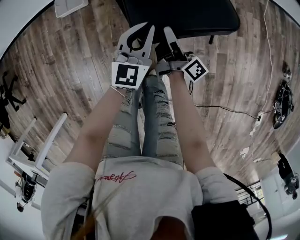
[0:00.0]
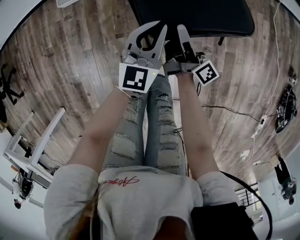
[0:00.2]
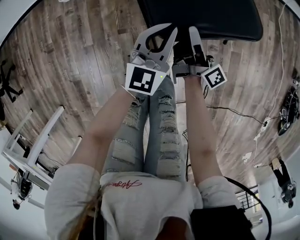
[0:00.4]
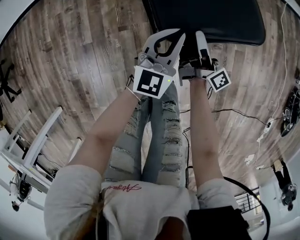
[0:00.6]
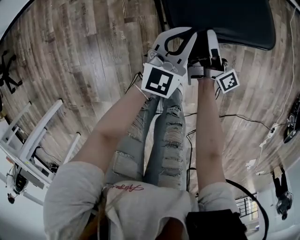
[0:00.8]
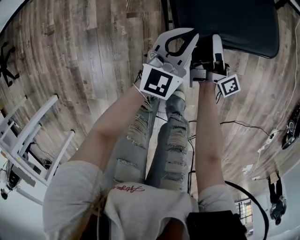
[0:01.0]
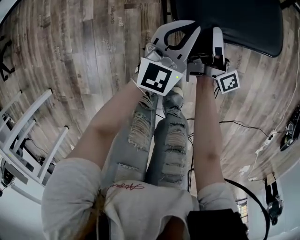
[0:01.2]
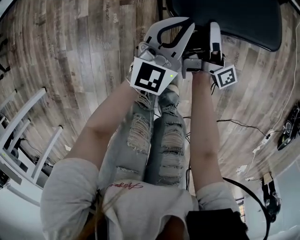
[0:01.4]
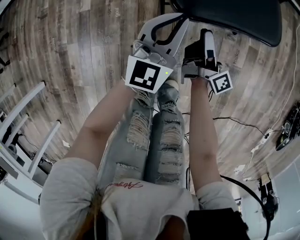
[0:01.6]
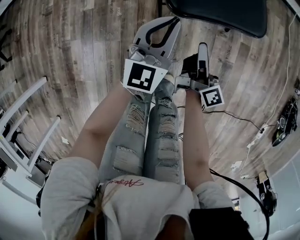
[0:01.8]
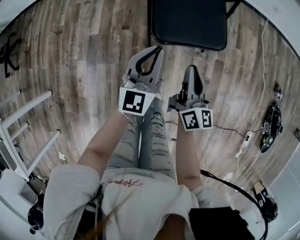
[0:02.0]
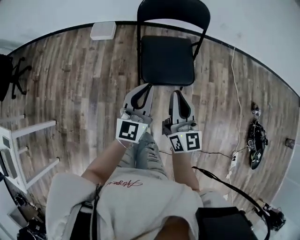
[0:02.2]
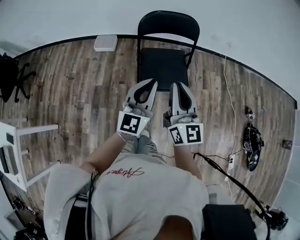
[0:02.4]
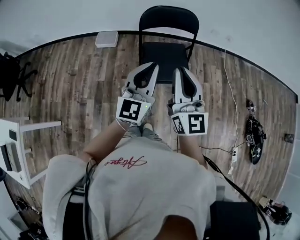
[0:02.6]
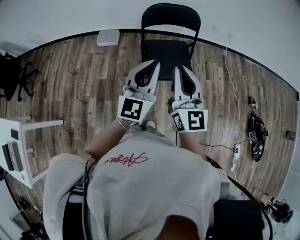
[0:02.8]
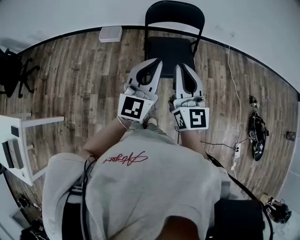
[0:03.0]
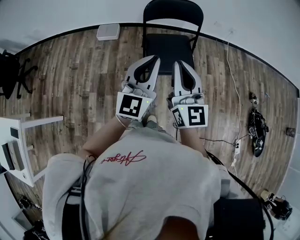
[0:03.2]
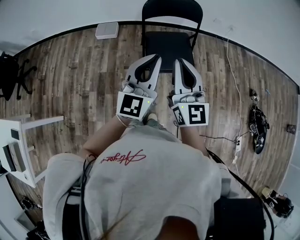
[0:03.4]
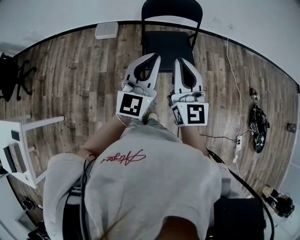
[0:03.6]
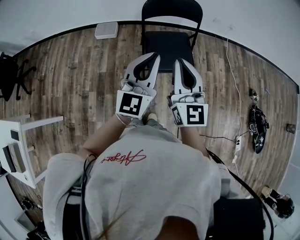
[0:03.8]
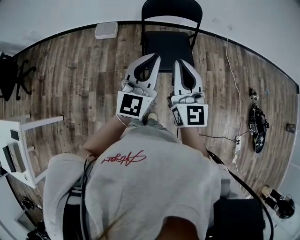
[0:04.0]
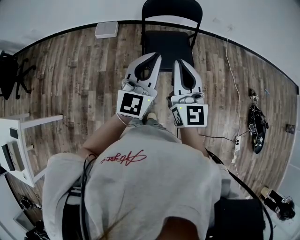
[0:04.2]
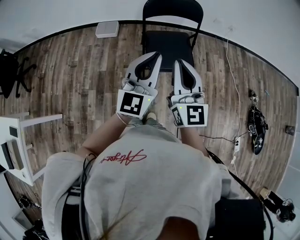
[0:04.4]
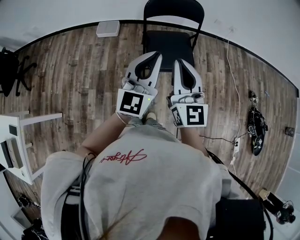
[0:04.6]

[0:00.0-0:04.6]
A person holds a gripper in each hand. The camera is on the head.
0:00.0 to 0:01.6: The two grippers go about 25 cm backward and downward.
0:01.6 to 0:03.0: The two grippers go some 60 cm upward. The right gripper rolls counterclockwise, seen from behind, by some 80 degrees, and closes its fingers.
0:03.0 to 0:04.6: The grippers make only small movements.

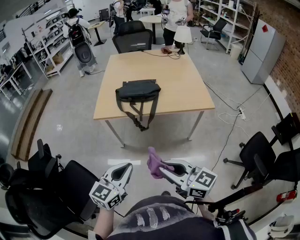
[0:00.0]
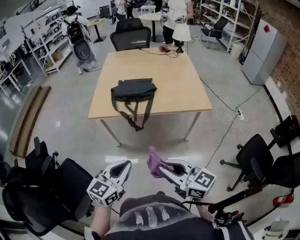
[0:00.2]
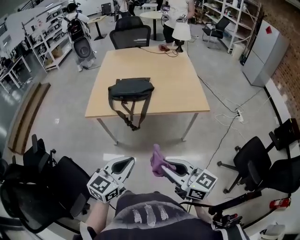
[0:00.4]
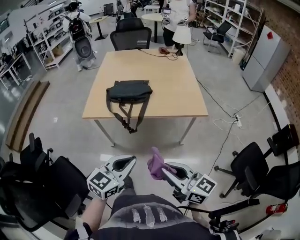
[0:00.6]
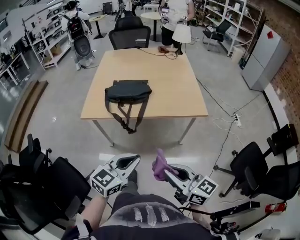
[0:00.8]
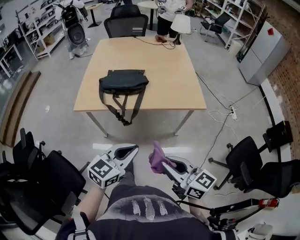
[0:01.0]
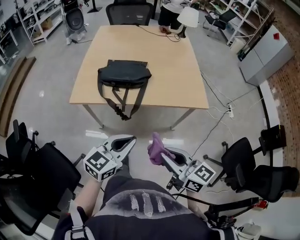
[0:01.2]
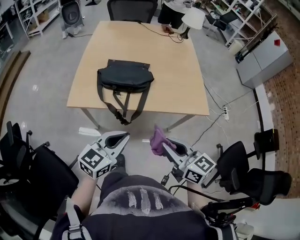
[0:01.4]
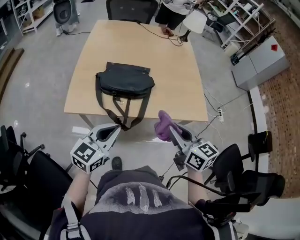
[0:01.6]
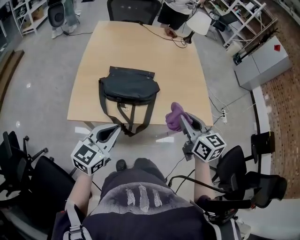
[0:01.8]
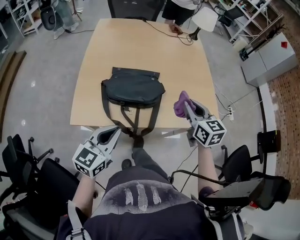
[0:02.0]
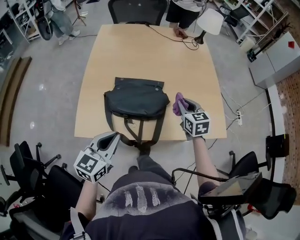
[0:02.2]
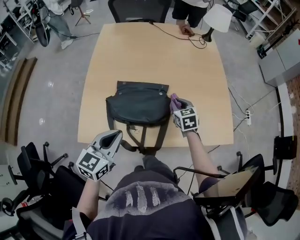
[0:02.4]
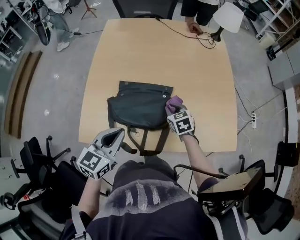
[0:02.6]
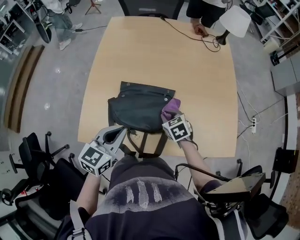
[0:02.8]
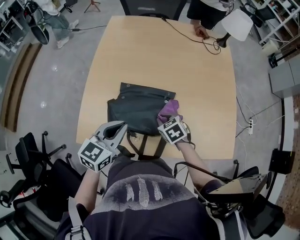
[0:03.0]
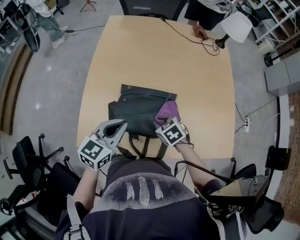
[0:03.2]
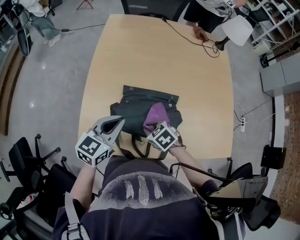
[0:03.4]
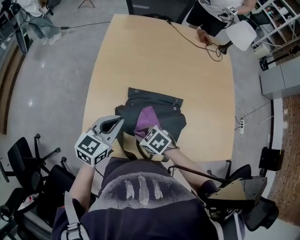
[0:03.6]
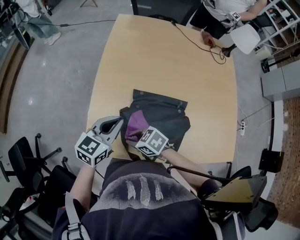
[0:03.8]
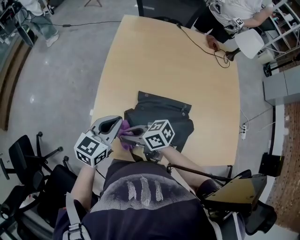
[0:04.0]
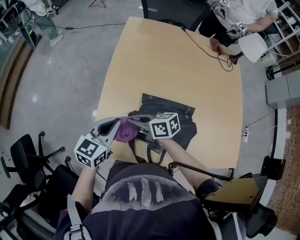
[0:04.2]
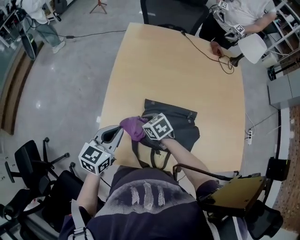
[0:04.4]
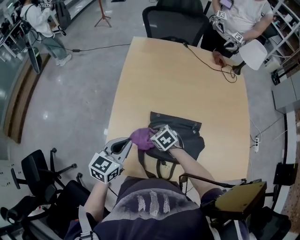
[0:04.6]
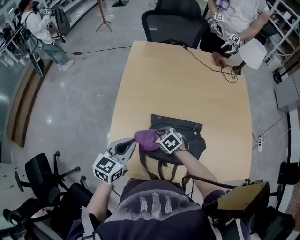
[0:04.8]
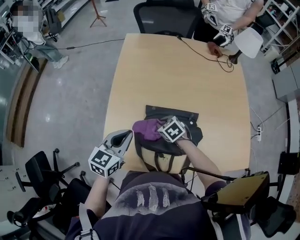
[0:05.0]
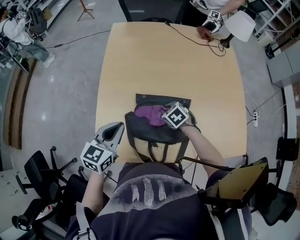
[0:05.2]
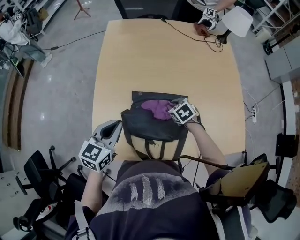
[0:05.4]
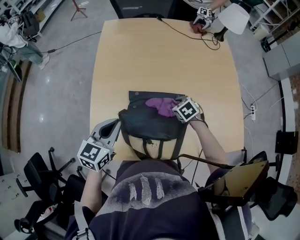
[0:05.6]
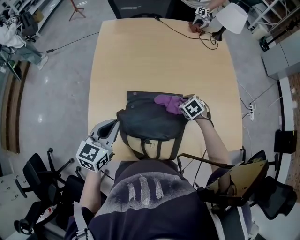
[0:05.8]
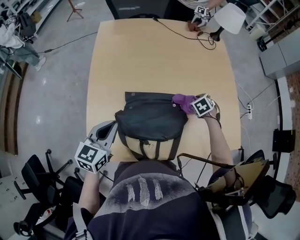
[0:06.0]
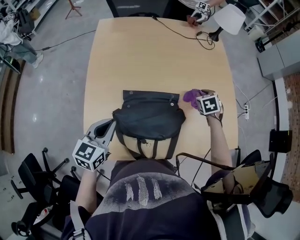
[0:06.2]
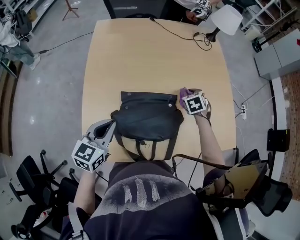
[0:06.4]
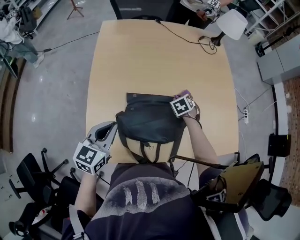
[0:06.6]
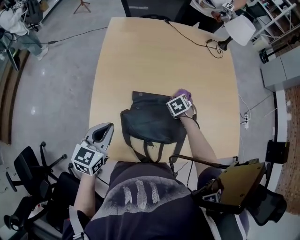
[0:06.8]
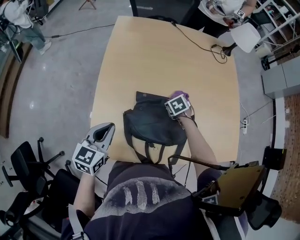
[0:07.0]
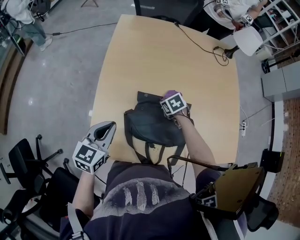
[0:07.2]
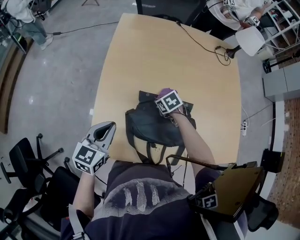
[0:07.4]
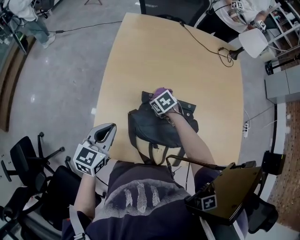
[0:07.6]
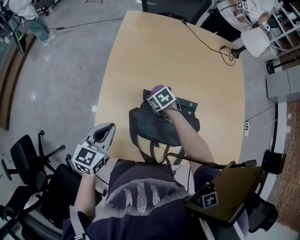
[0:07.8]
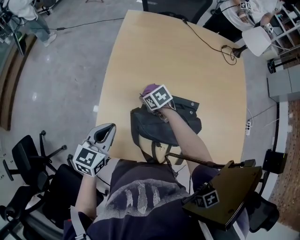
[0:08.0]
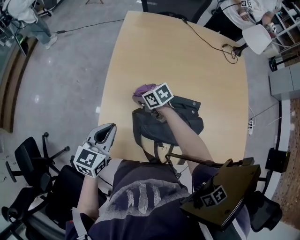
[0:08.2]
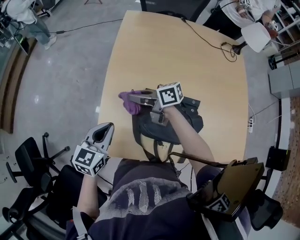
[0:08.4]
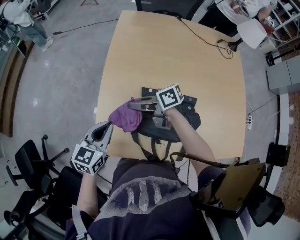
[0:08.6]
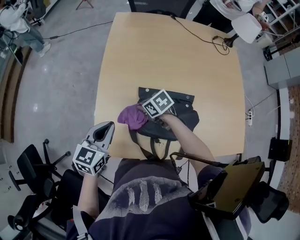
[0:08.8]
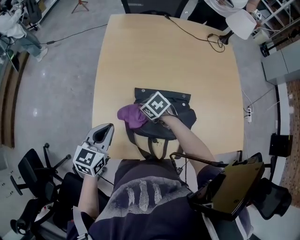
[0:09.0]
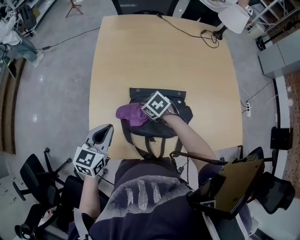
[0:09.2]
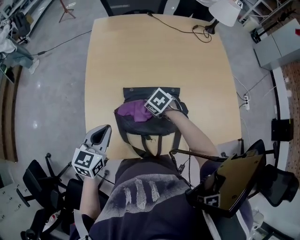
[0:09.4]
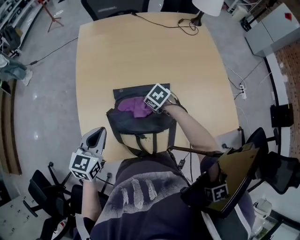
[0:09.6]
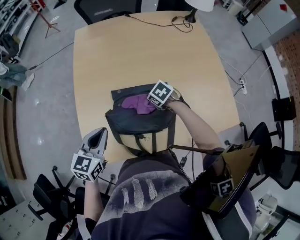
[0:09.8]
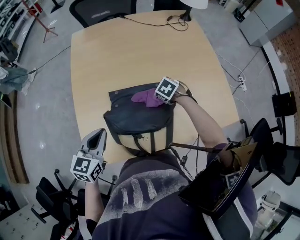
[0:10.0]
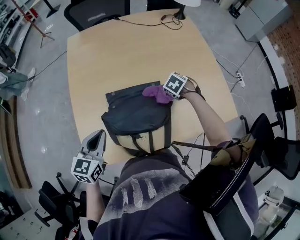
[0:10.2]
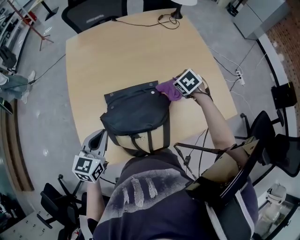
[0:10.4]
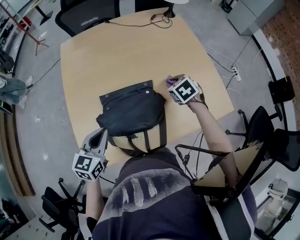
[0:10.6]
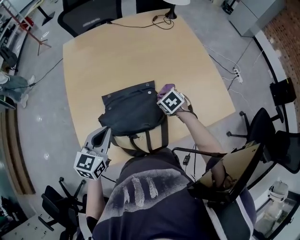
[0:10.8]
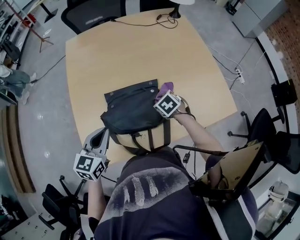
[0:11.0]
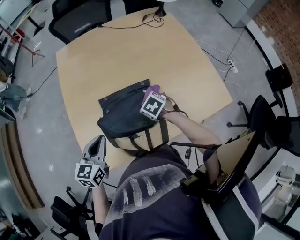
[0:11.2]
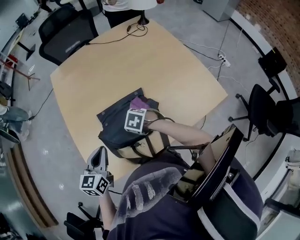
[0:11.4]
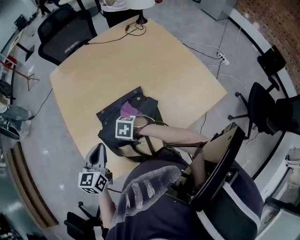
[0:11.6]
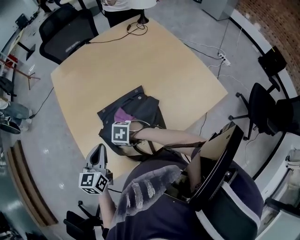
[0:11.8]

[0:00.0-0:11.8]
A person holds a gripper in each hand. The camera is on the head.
0:00.0 to 0:01.4: Both grippers move forward, about 25 cm.
0:01.4 to 0:03.0: The right gripper travels forward and downward by roughly 50 cm, and angles its fingers downward, by roughly 40 degrees, while the left gripper is displaced forward by roughly 35 cm.
0:03.0 to 0:04.4: The right gripper reaches approximately 10 cm upward, then returns. Meanwhile the left gripper moves approximately 20 cm.
0:04.4 to 0:06.0: The left gripper changes place by approximately 5 cm; the right gripper changes place by roughly 40 cm, and turns by some 40 degrees.
0:06.0 to 0:07.4: The left gripper changes place by approximately 10 cm, while the right gripper ends up approximately 30 cm from where it was, and rotates about 30 degrees.
0:07.4 to 0:08.8: The right gripper travels to the left by roughly 10 cm, and rotates roughly 20 degrees.
0:08.8 to 0:10.4: The right gripper moves about 40 cm, and changes its angle by about 40 degrees. Meanwhile the left gripper shifts by approximately 10 cm.
0:10.4 to 0:11.8: The right gripper changes place by some 35 cm, and changes its angle by about 30 degrees.

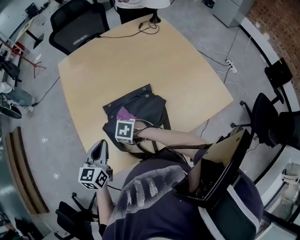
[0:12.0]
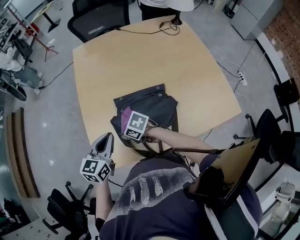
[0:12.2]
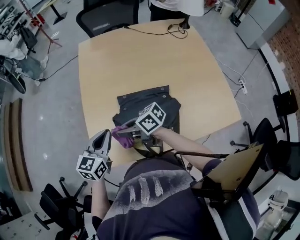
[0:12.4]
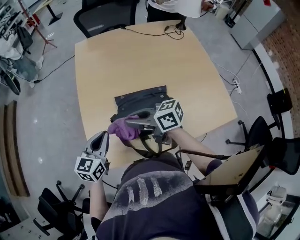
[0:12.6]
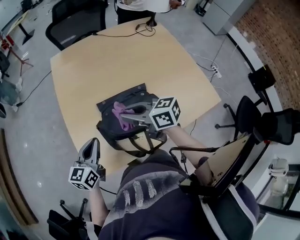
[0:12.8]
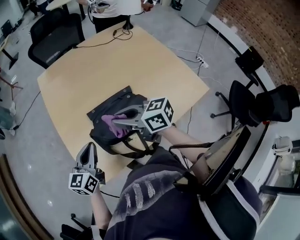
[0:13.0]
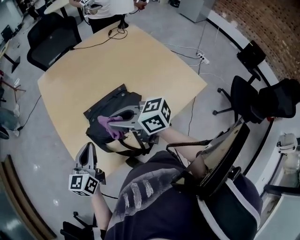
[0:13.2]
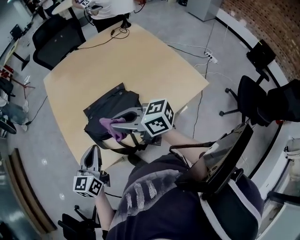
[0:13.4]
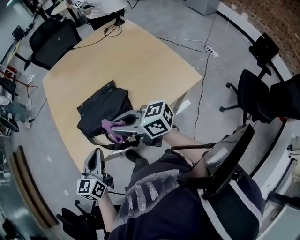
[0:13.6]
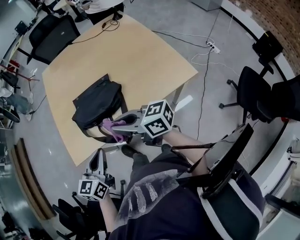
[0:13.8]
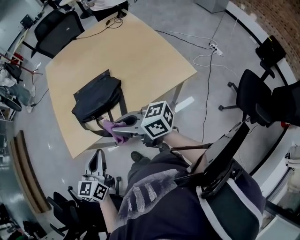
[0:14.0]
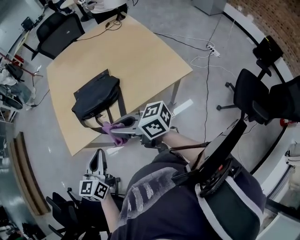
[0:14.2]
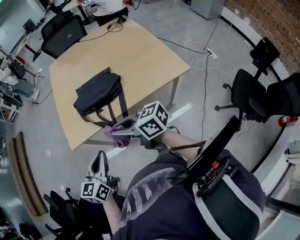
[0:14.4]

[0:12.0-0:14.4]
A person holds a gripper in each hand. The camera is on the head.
0:12.0 to 0:13.2: The right gripper is displaced upward by roughly 25 cm, and tilts its fingers roughly 50 degrees upward.
0:13.2 to 0:14.4: The two grippers go some 30 cm backward.

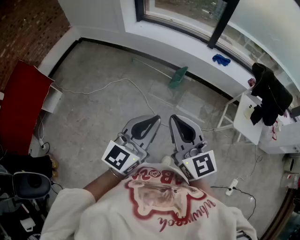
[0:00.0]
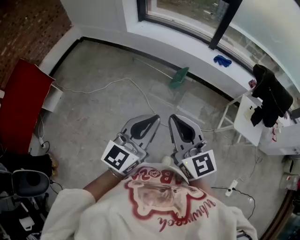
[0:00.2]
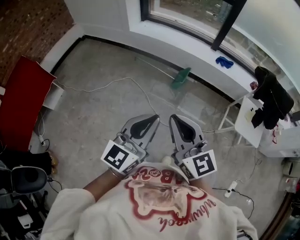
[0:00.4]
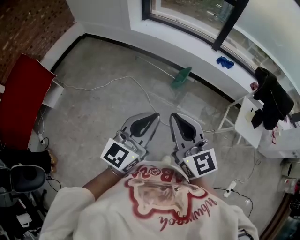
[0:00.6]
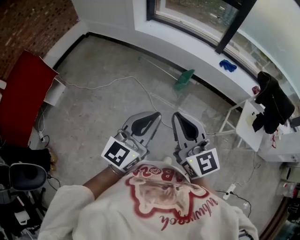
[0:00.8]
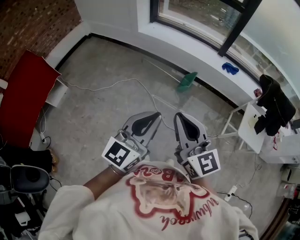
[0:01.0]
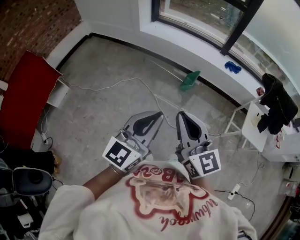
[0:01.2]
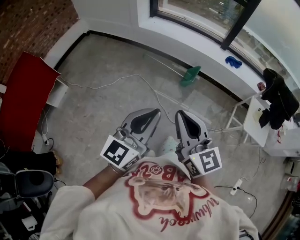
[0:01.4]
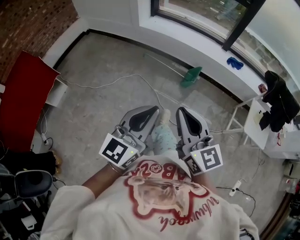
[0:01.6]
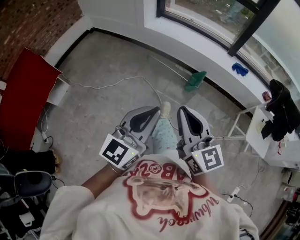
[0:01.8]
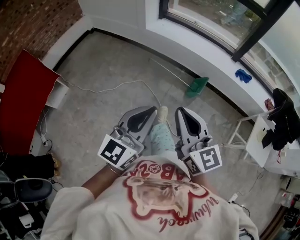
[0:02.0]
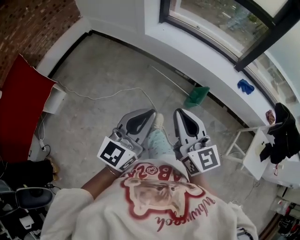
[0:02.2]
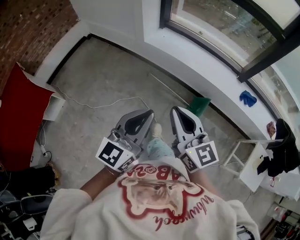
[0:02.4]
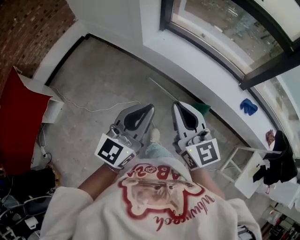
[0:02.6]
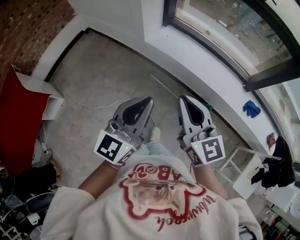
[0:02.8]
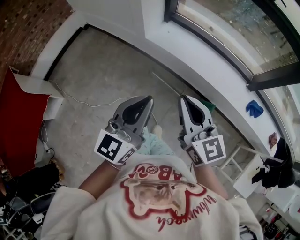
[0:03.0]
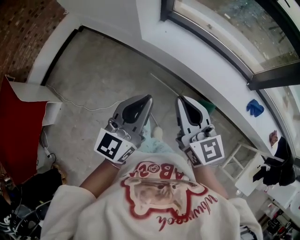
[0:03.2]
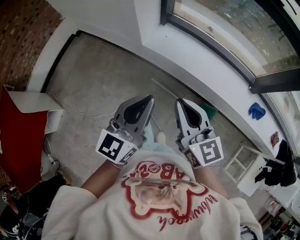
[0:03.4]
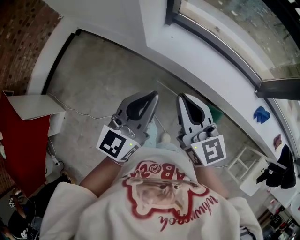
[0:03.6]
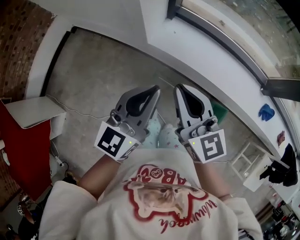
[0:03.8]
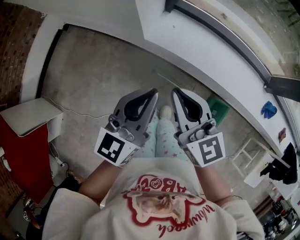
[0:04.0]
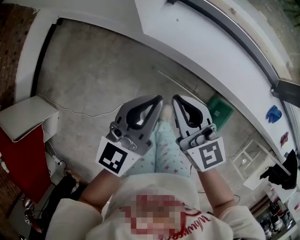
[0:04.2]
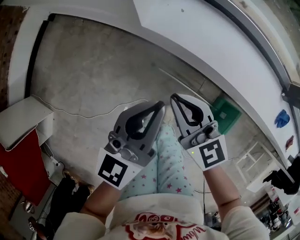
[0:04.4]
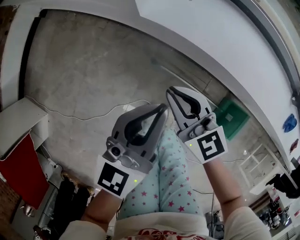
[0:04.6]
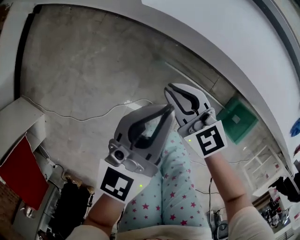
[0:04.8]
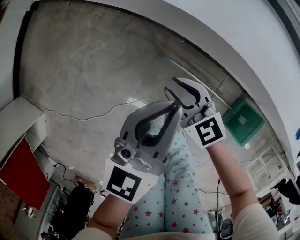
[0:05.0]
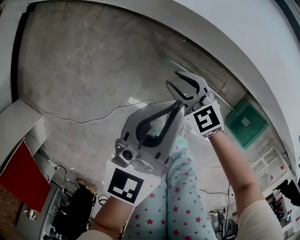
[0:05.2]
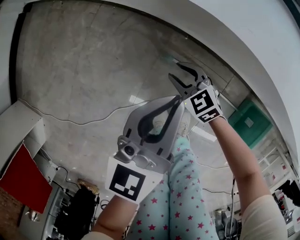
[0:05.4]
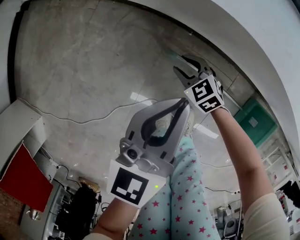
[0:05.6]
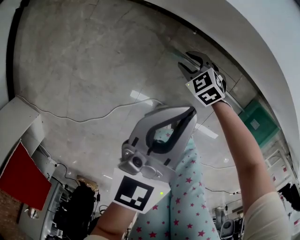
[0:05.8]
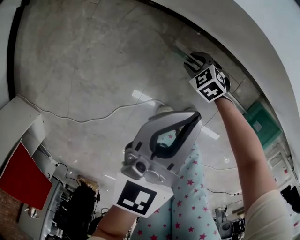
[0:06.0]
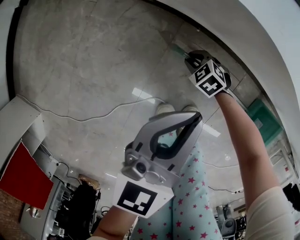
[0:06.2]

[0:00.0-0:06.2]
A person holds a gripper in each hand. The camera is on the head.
0:00.0 to 0:01.6: The grippers both shift to the left by approximately 10 cm.
0:01.6 to 0:03.2: Both grippers are carried forward, roughly 60 cm.
0:03.2 to 0:04.6: The grippers both shift downward and forward by some 40 cm.
0:04.6 to 0:06.2: The right gripper moves downward, roughly 50 cm, and tilts its fingers about 50 degrees downward. The left gripper goes about 20 cm downward.
